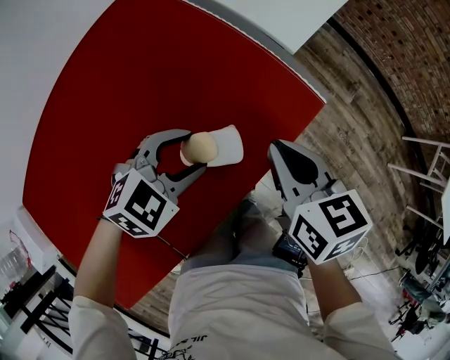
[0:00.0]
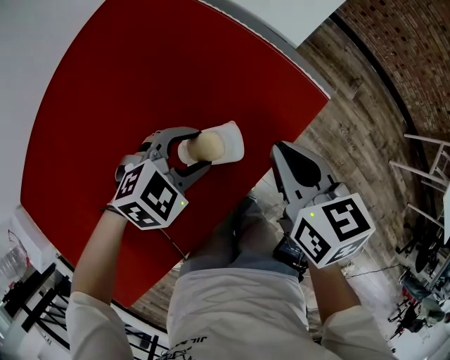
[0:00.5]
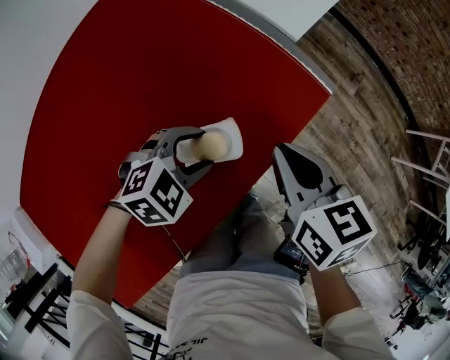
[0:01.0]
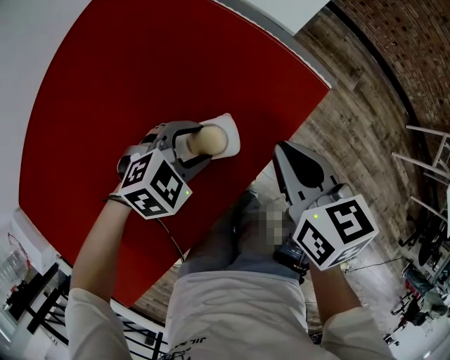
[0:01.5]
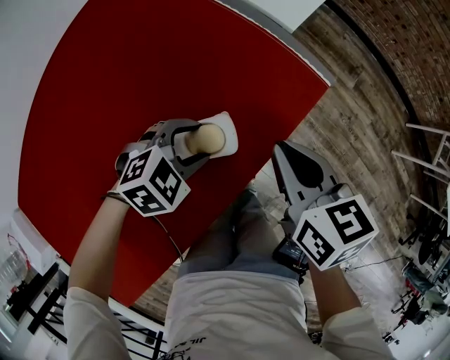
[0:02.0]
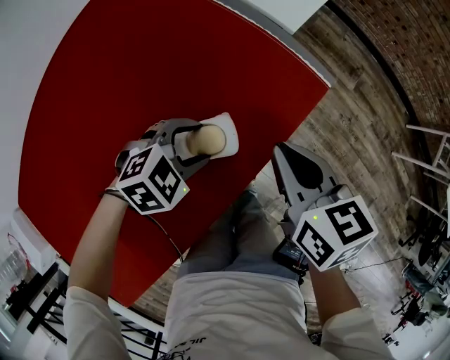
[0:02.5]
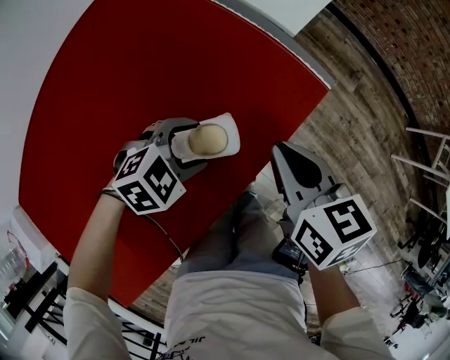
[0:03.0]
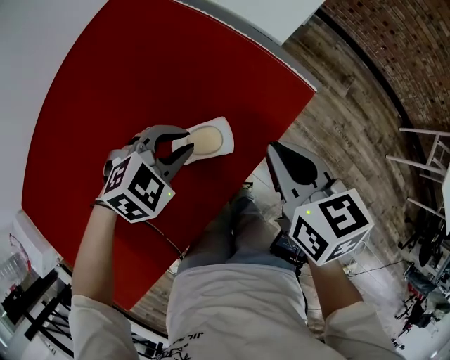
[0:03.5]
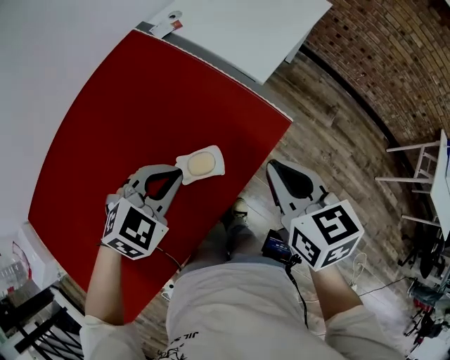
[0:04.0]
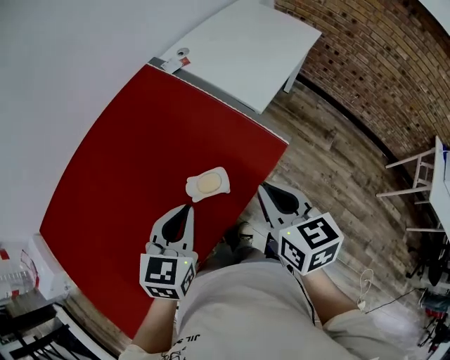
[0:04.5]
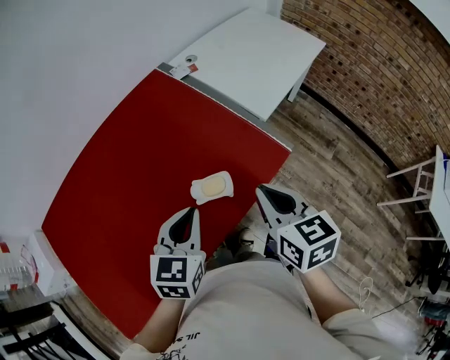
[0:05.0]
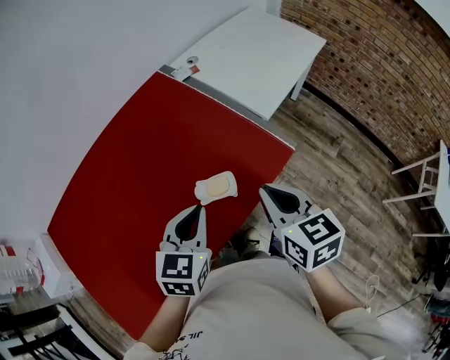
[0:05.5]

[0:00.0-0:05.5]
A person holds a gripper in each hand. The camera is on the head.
0:00.0 to 0:02.0: The right gripper ends up roughly 5 cm from where it was, while the left gripper moves downward, approximately 10 cm.
0:02.0 to 0:03.5: The left gripper goes roughly 5 cm upward, and closes up.
0:03.5 to 0:05.5: The two grippers go about 15 cm upward and backward. The left gripper rotates approximately 60 degrees.

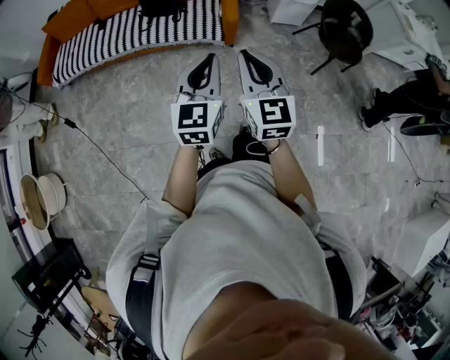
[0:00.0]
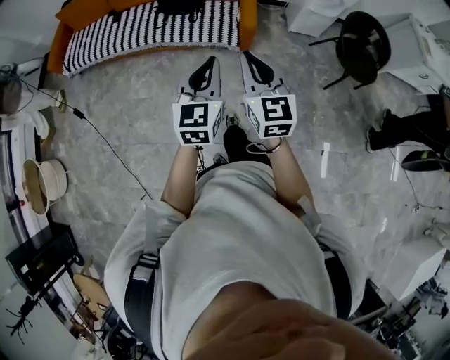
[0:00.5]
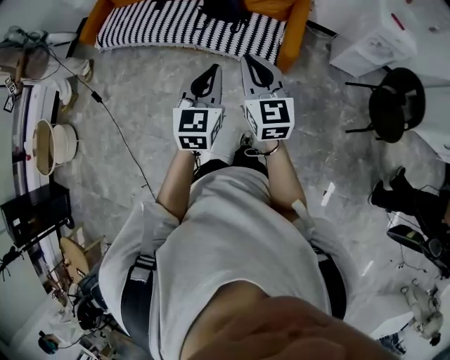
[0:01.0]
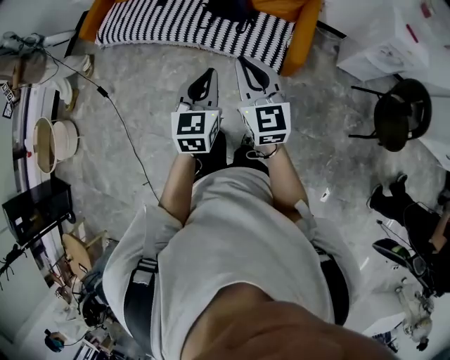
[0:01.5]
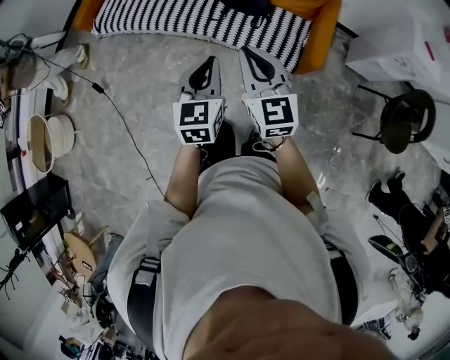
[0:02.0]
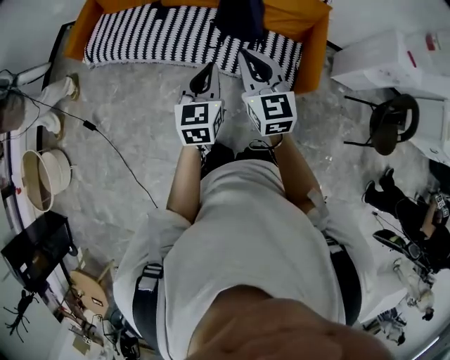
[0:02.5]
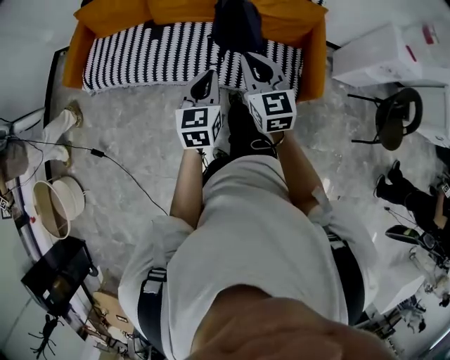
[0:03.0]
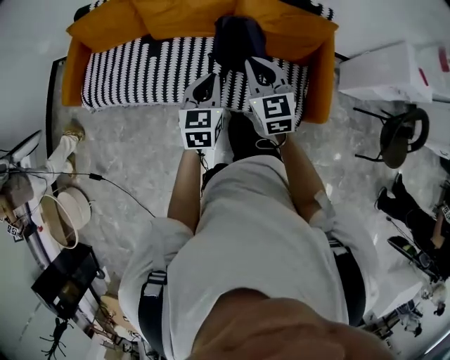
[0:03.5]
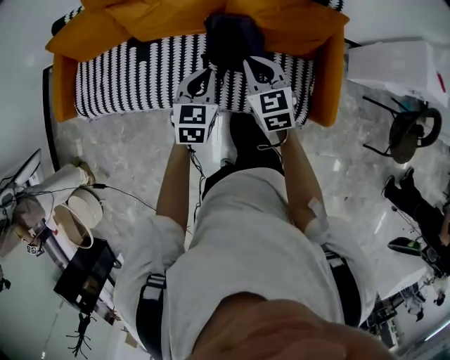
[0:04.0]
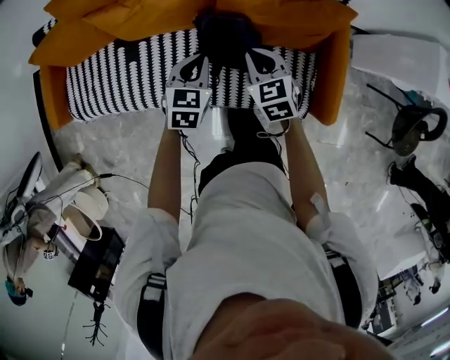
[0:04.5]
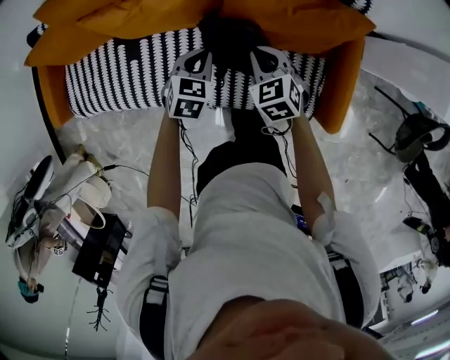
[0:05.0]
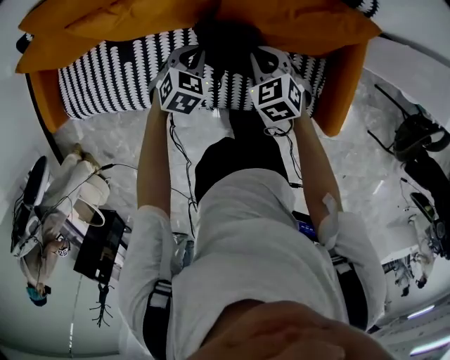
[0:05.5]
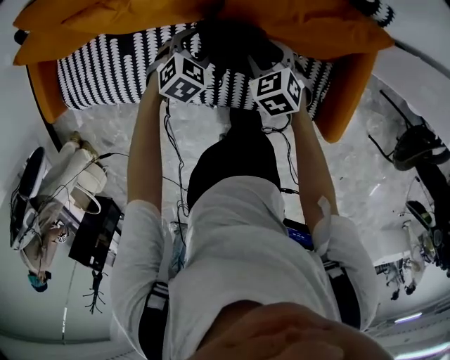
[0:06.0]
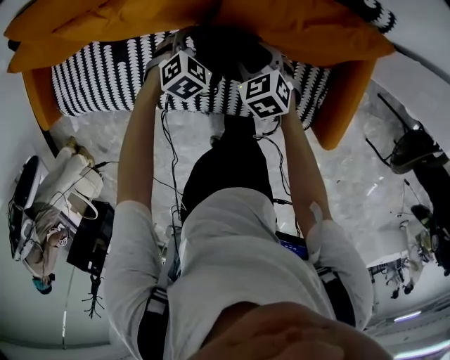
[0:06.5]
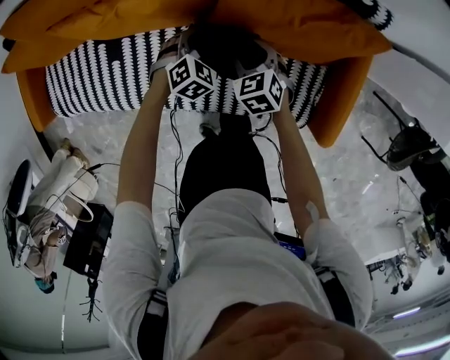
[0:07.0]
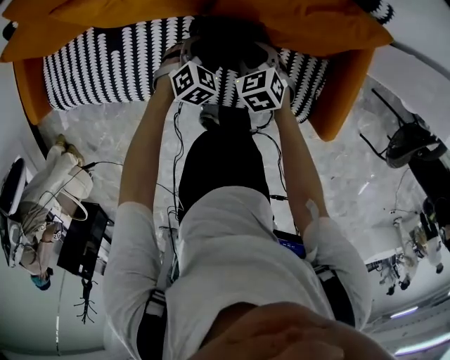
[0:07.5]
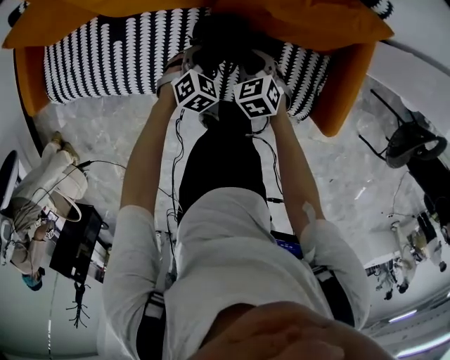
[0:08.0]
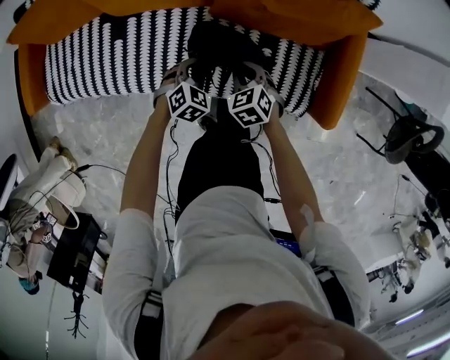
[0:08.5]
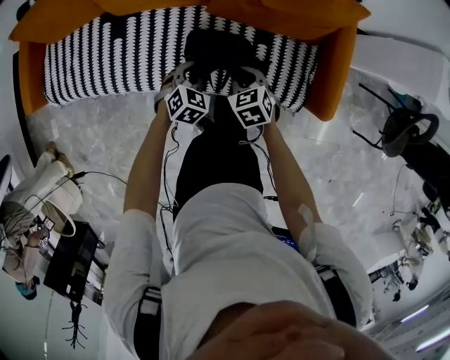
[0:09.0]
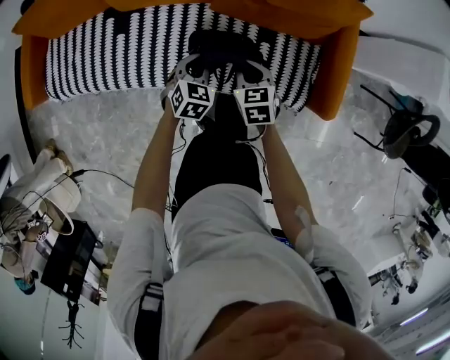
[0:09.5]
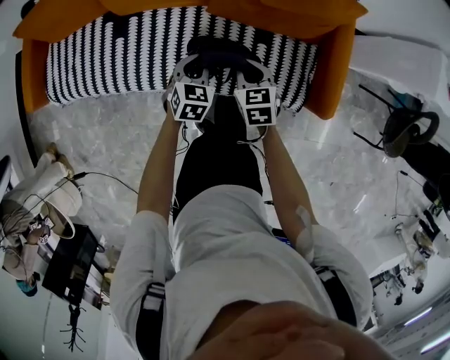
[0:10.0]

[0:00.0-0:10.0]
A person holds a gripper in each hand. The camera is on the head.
0:00.0 to 0:02.0: The grippers both shift forward and to the left by roughly 40 cm. The right gripper swivels some 30 degrees. Meanwhile the left gripper swivels roughly 30 degrees.
0:02.0 to 0:04.0: Both grippers are carried forward, approximately 40 cm. The left gripper turns by some 30 degrees, while the right gripper goes approximately 20 cm downward, and turns by roughly 20 degrees.
0:04.0 to 0:06.0: The left gripper goes some 30 cm forward and downward, turns by some 40 degrees, and opens up; the right gripper shifts approximately 25 cm downward and forward, changes its angle by about 30 degrees, and opens up.
0:06.0 to 0:08.0: Both grippers move backward and downward, roughly 10 cm. The right gripper closes; the left gripper closes its fingers.
0:08.0 to 0:10.0: The grippers both shift backward and upward by approximately 10 cm. The left gripper changes its angle by roughly 30 degrees. The right gripper changes its angle by some 20 degrees.

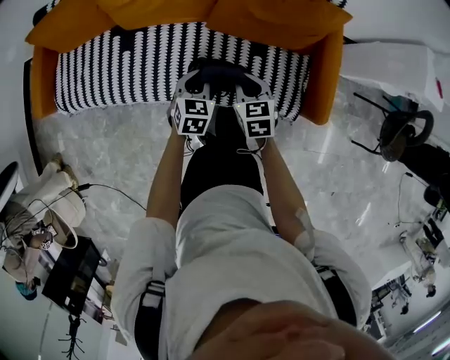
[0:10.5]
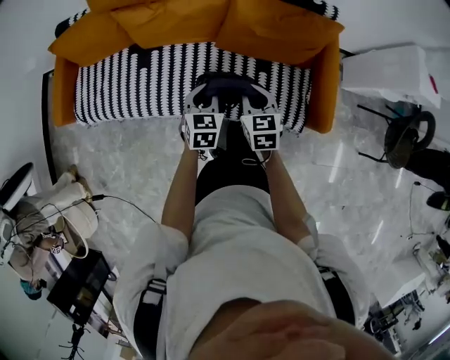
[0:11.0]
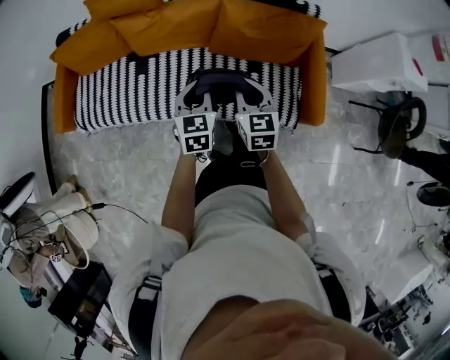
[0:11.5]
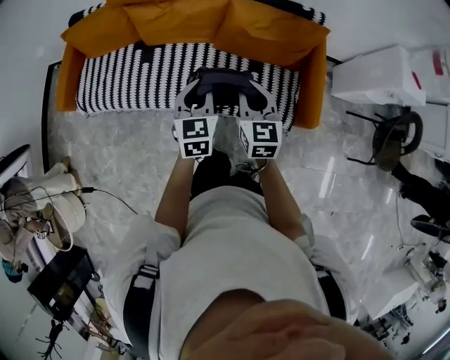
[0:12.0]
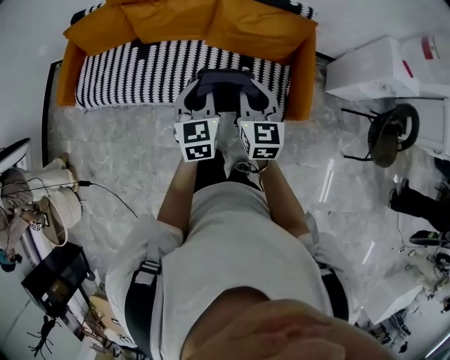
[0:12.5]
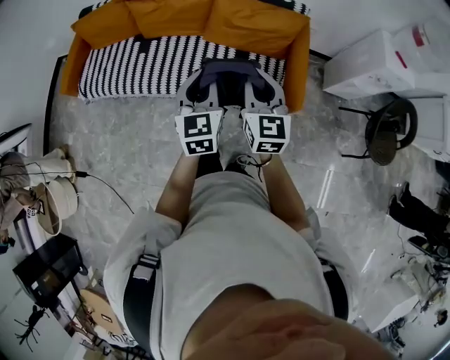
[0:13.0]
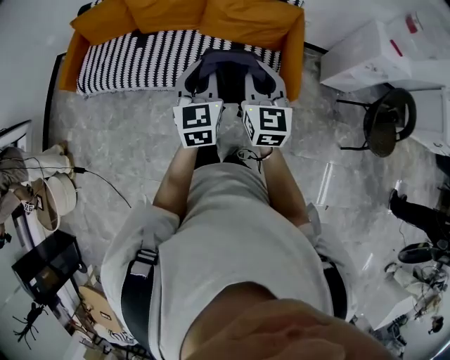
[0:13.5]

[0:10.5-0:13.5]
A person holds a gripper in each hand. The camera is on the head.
0:10.5 to 0:12.0: The two grippers go approximately 25 cm upward. The left gripper rotates about 20 degrees, while the right gripper turns by approximately 20 degrees.
0:12.0 to 0:13.5: The two grippers go some 20 cm backward, to the right and upward.

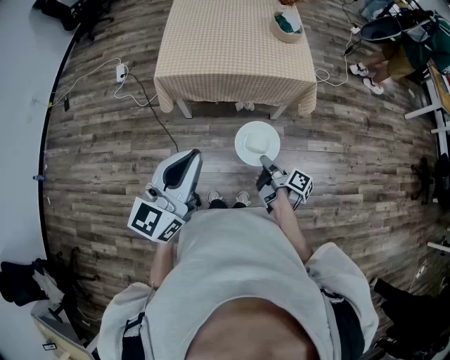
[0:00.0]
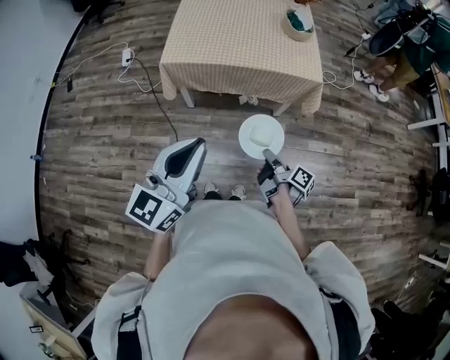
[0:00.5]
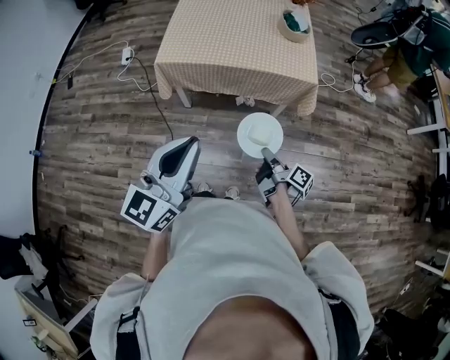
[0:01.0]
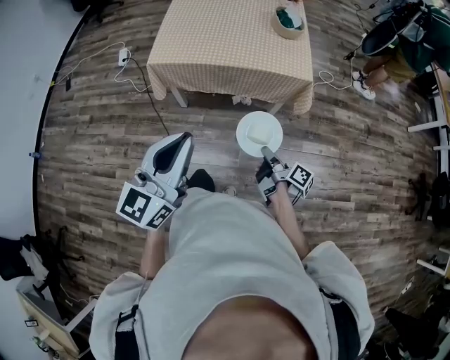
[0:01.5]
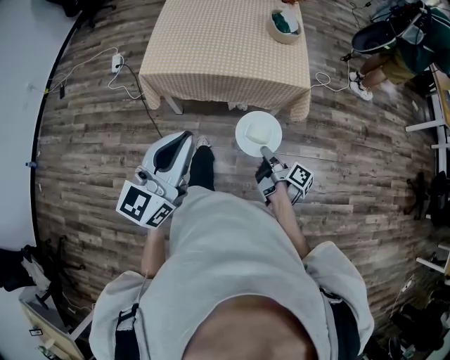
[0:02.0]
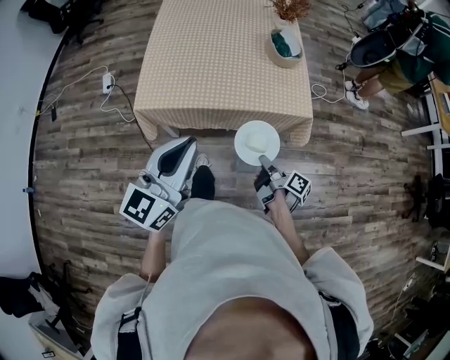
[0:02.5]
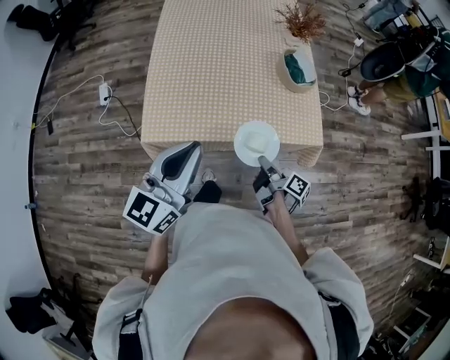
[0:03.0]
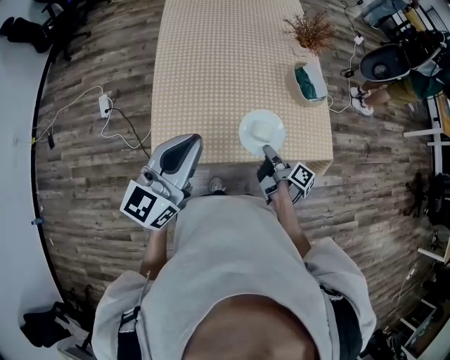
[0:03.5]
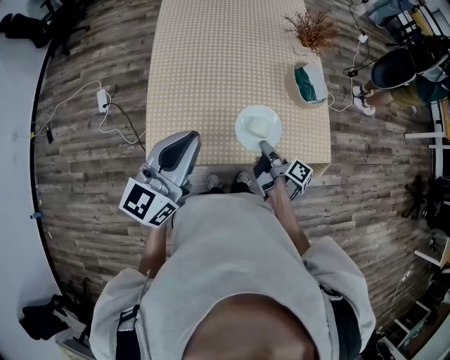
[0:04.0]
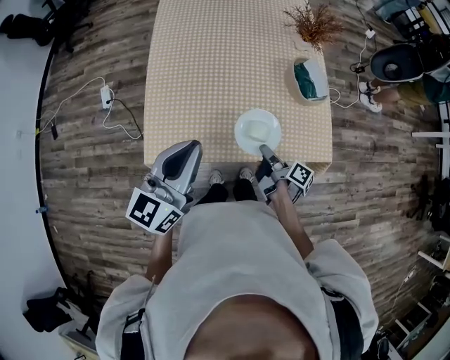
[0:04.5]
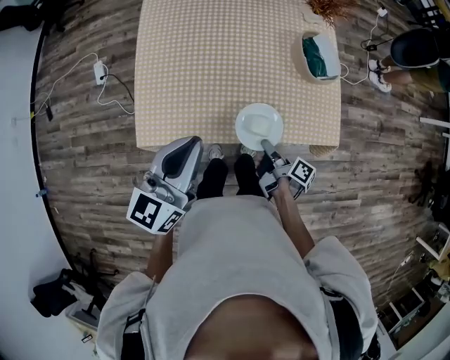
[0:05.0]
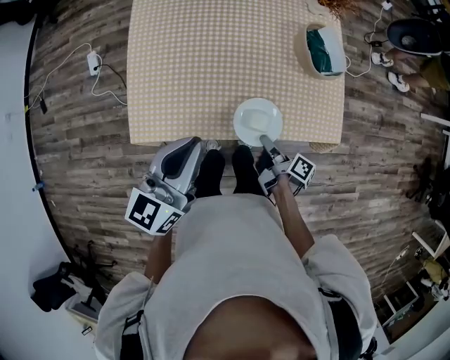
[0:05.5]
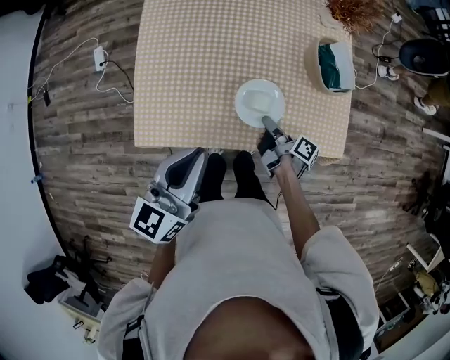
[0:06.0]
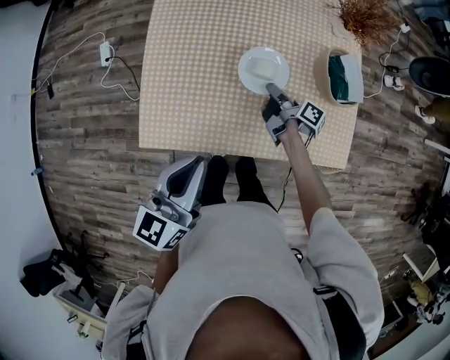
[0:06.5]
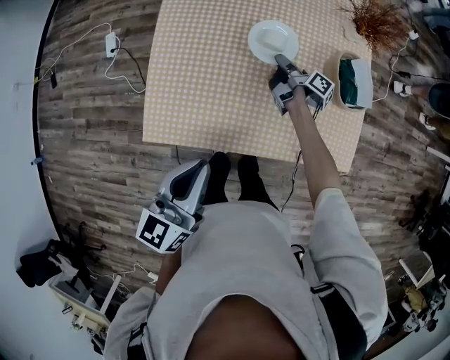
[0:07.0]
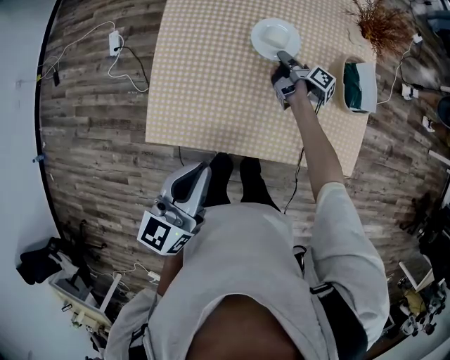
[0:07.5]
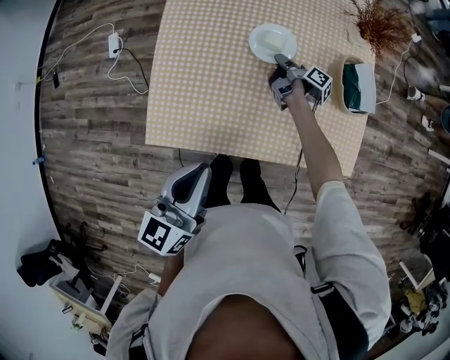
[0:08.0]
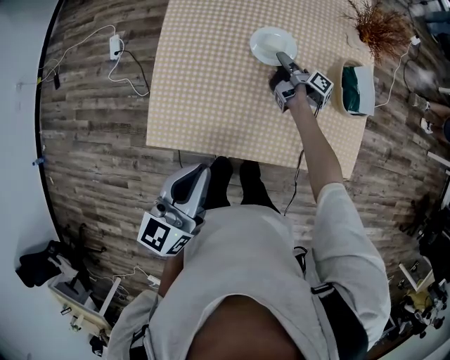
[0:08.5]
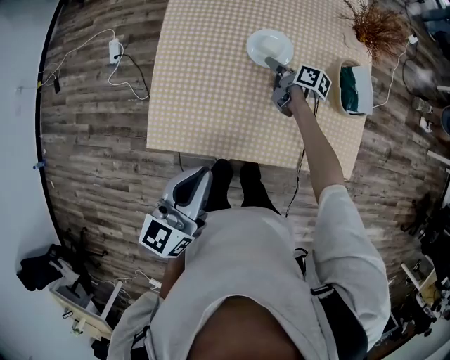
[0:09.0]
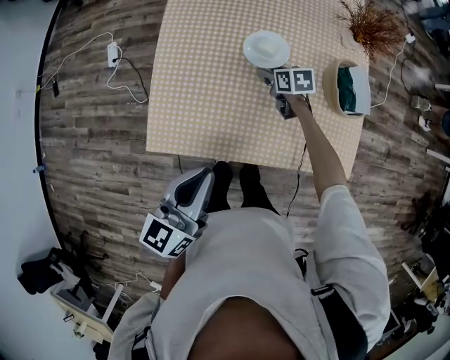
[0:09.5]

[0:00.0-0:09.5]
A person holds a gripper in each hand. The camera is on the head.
0:00.0 to 0:02.0: The left gripper changes place by roughly 10 cm.
0:02.0 to 0:04.0: The left gripper shifts by approximately 40 cm.
0:04.0 to 0:05.5: The left gripper heads downward, covering some 10 cm.
0:05.5 to 0:07.5: The left gripper changes place by some 5 cm.
